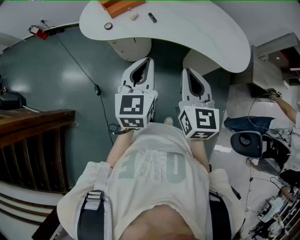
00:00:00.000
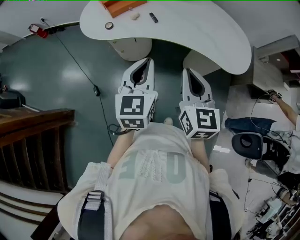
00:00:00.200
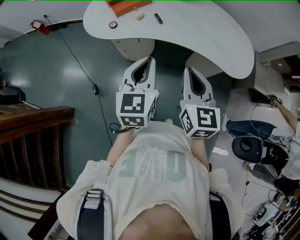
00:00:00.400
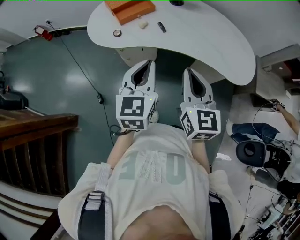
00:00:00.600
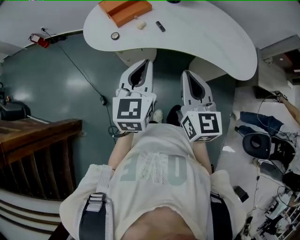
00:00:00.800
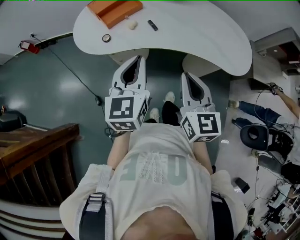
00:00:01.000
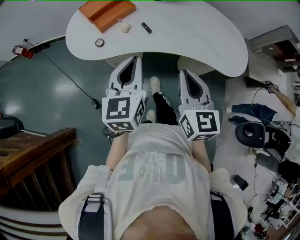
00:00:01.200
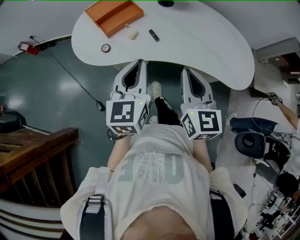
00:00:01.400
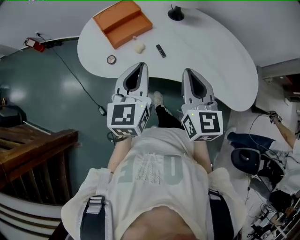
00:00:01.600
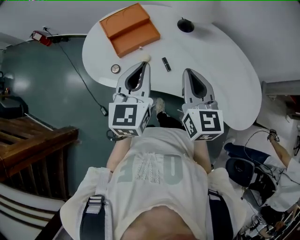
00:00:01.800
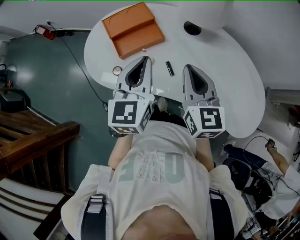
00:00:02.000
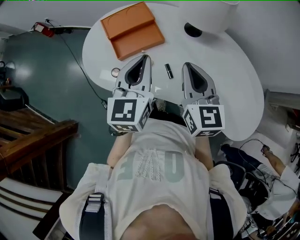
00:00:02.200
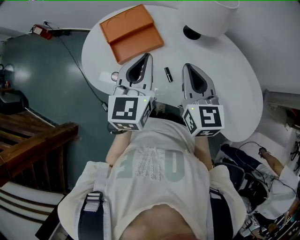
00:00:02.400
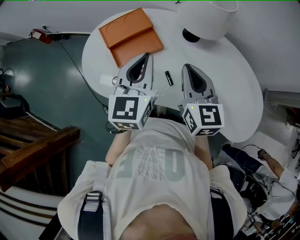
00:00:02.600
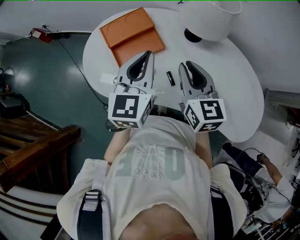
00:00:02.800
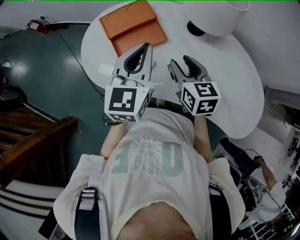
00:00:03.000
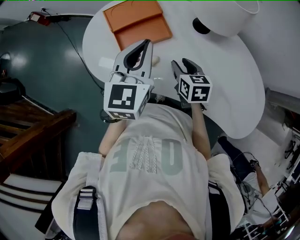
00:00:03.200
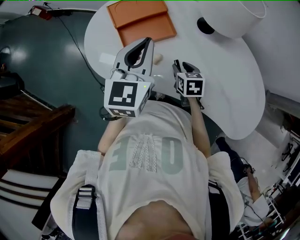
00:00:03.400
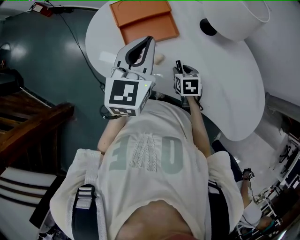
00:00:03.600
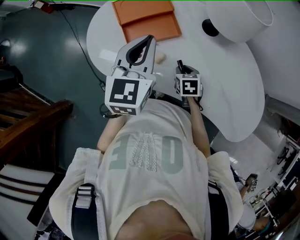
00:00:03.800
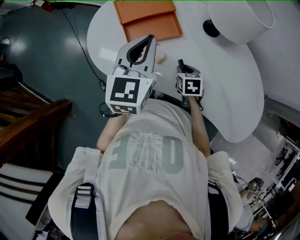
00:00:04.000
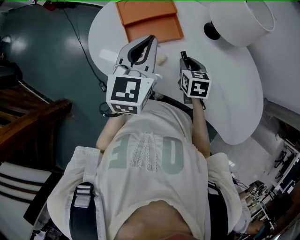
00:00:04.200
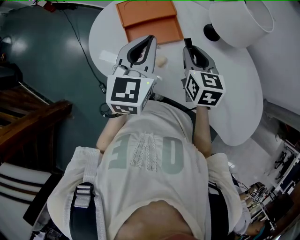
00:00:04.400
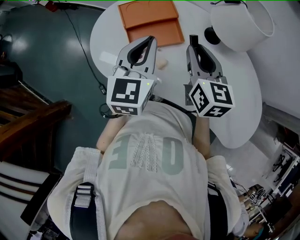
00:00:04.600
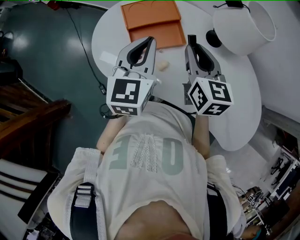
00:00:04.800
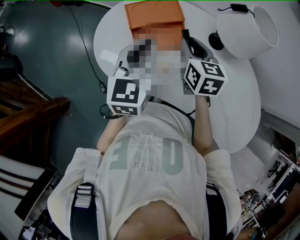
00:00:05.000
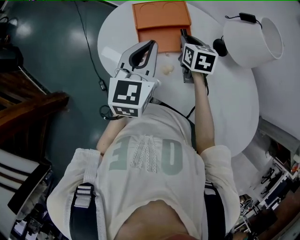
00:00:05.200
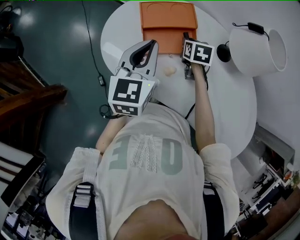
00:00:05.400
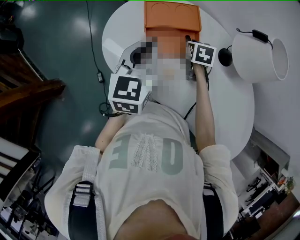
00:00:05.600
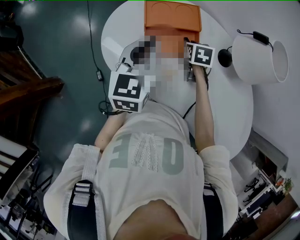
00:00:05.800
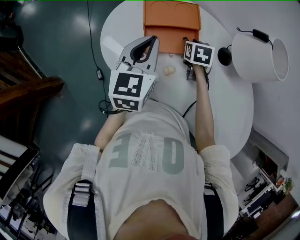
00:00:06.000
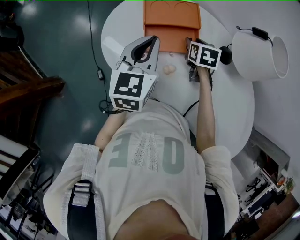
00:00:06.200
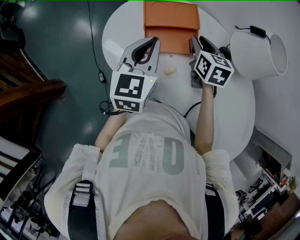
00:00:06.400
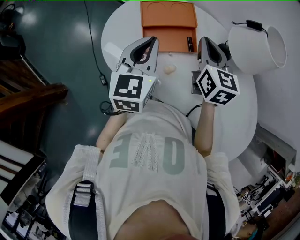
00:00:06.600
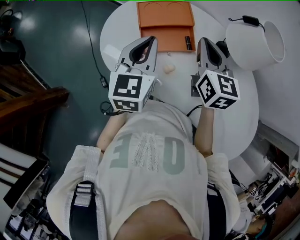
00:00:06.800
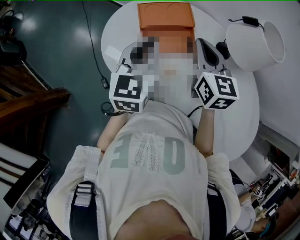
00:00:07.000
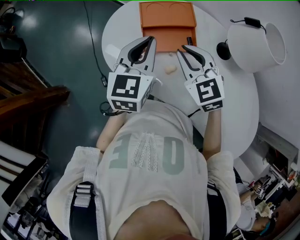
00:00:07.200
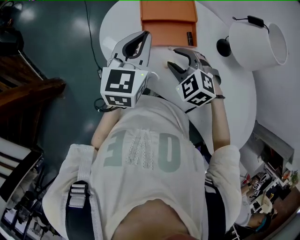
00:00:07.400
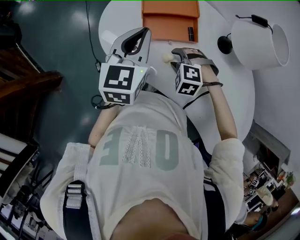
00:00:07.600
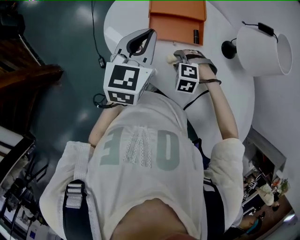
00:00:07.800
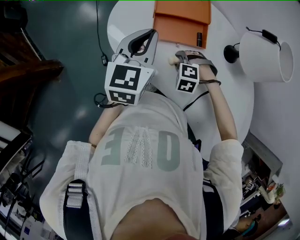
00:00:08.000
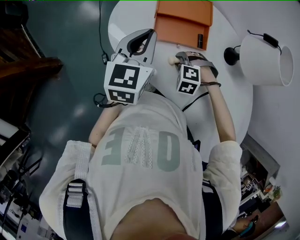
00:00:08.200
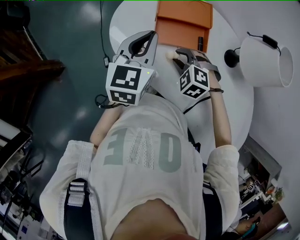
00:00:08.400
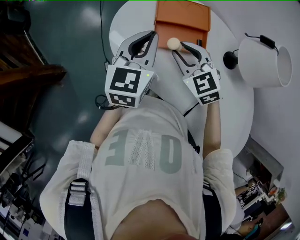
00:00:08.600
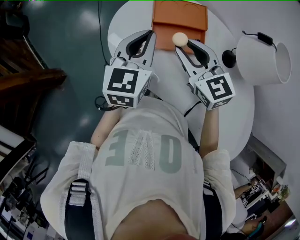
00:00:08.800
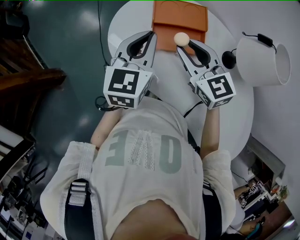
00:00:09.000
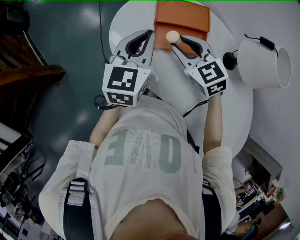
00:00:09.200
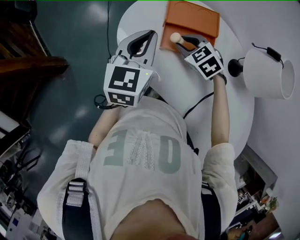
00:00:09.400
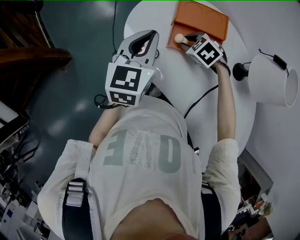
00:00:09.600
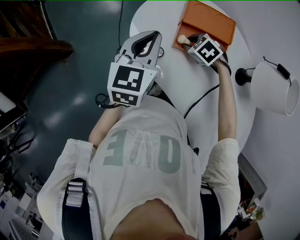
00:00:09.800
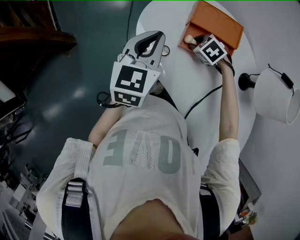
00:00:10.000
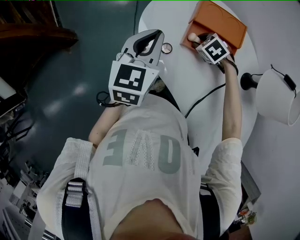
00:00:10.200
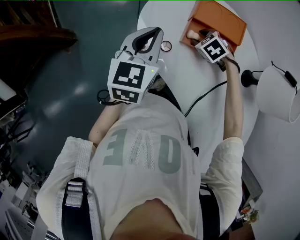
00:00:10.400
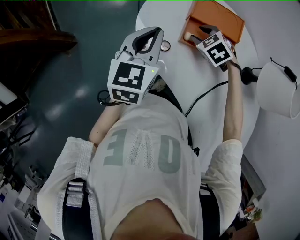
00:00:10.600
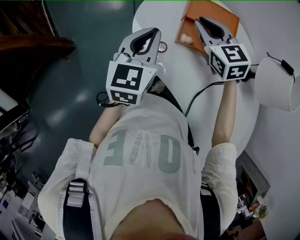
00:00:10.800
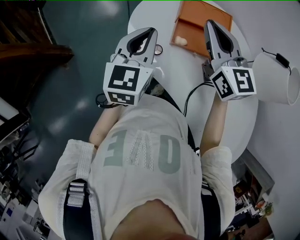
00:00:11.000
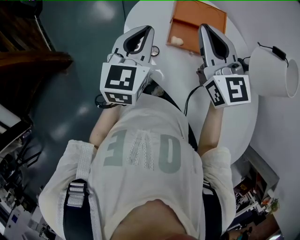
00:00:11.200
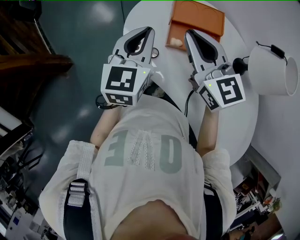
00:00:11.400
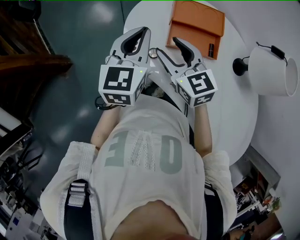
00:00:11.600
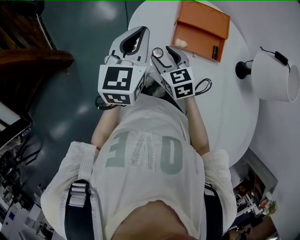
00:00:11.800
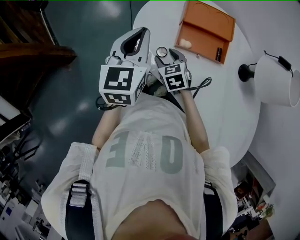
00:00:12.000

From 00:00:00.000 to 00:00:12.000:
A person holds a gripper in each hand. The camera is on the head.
From 00:00:00.000 to 00:00:01.600: The two grippers go approximately 20 cm forward.
From 00:00:01.600 to 00:00:03.000: The left gripper shifts some 15 cm forward, while the right gripper is displaced forward and downward by roughly 20 cm, rotates roughly 30 degrees, and opens up.
From 00:00:03.000 to 00:00:04.400: The left gripper travels to the left by roughly 5 cm; the right gripper reaches about 20 cm downward, then returns.
From 00:00:04.400 to 00:00:06.000: The right gripper is displaced downward and forward by about 20 cm, and rotates roughly 30 degrees. Meanwhile the left gripper shifts about 5 cm to the left.
From 00:00:06.000 to 00:00:07.600: The right gripper moves backward, some 15 cm, reaches approximately 20 cm upward, then returns, rolls counterclockwise, seen from behind, by some 80 degrees, and closes, then reopens.
From 00:00:07.600 to 00:00:09.000: The right gripper is displaced upward by approximately 20 cm, and points its fingers roughly 50 degrees further upward.
From 00:00:09.000 to 00:00:10.400: The left gripper travels to the left by some 10 cm, while the right gripper travels downward by some 20 cm, and points its fingers about 50 degrees further downward.
From 00:00:10.400 to 00:00:12.000: The right gripper shifts roughly 15 cm to the left and backward, goes upward and returns, about 30 cm each way, swivels some 40 degrees, and closes, then opens again.

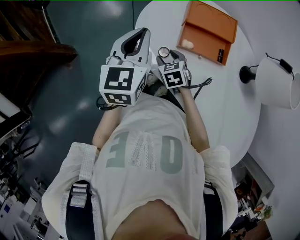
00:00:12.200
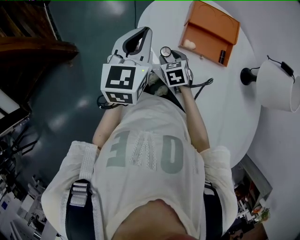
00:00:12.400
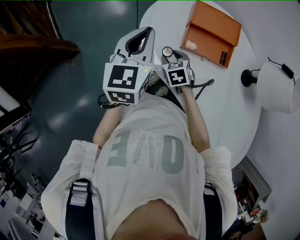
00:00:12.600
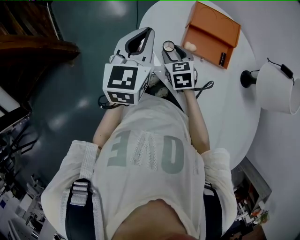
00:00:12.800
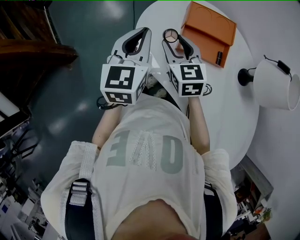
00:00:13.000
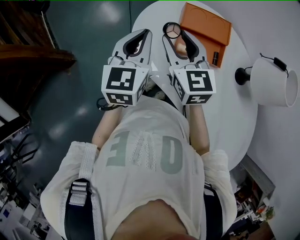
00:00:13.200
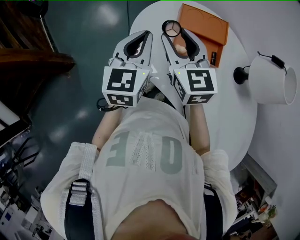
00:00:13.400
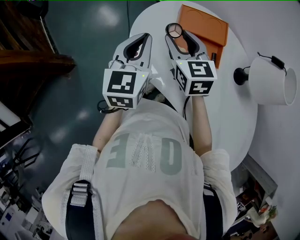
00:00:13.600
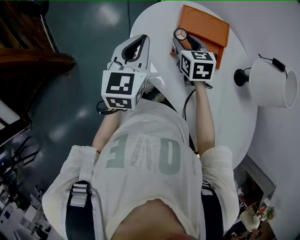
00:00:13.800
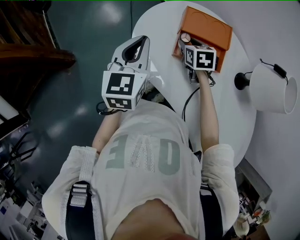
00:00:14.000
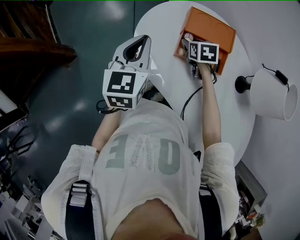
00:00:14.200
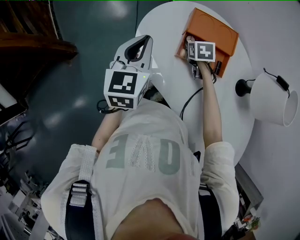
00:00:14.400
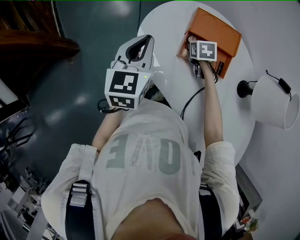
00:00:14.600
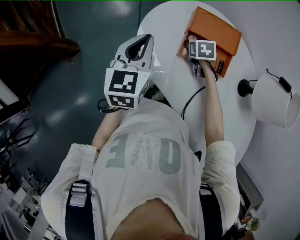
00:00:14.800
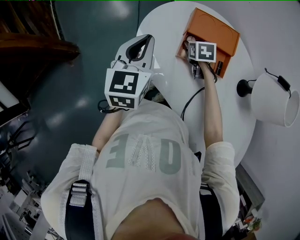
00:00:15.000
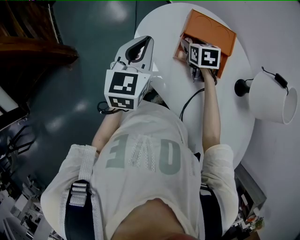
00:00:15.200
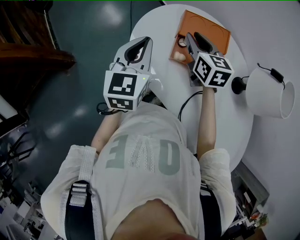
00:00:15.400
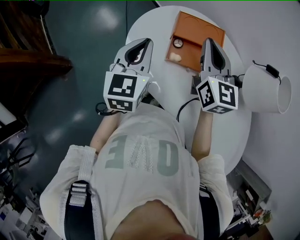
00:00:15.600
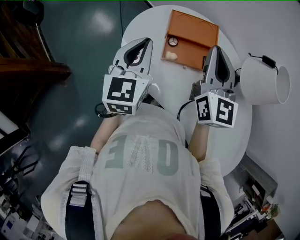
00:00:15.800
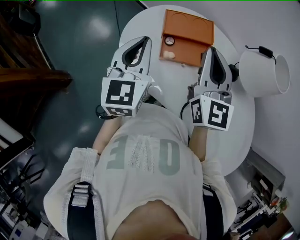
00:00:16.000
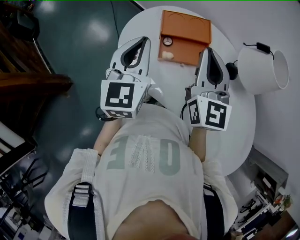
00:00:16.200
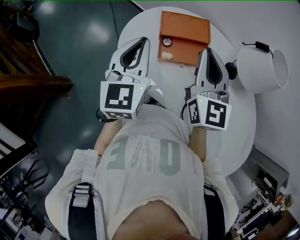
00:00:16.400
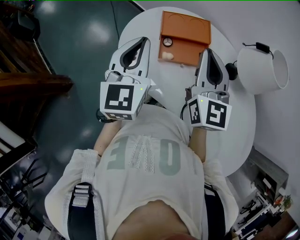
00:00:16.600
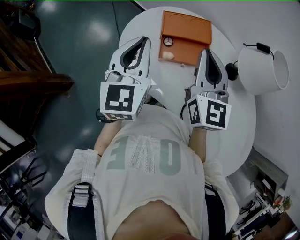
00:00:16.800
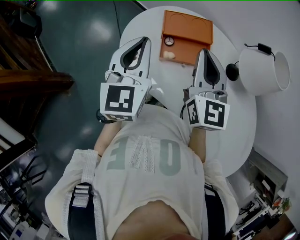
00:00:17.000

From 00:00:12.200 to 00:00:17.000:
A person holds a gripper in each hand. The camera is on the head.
From 00:00:12.200 to 00:00:13.800: The right gripper travels upward, forward and to the right by approximately 15 cm.
From 00:00:13.800 to 00:00:15.400: The right gripper reaches approximately 15 cm downward, then returns.
From 00:00:15.400 to 00:00:17.000: The right gripper moves upward, backward and to the right, about 20 cm, swivels roughly 30 degrees, and closes up. The left gripper heads upward and to the right, covering some 10 cm.

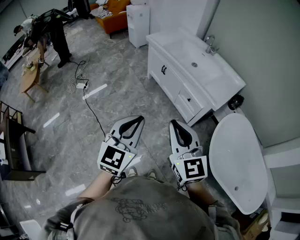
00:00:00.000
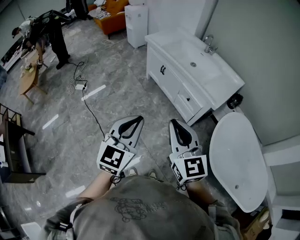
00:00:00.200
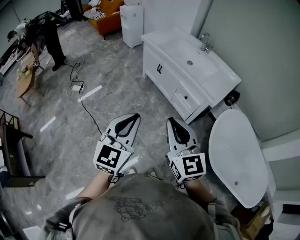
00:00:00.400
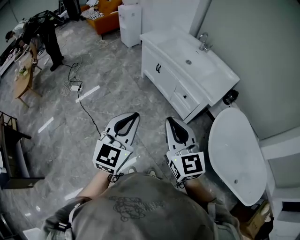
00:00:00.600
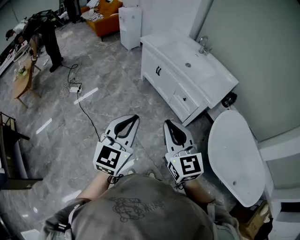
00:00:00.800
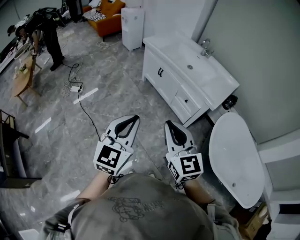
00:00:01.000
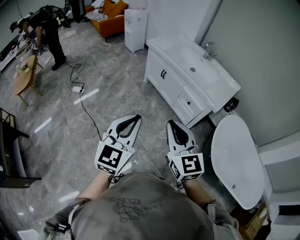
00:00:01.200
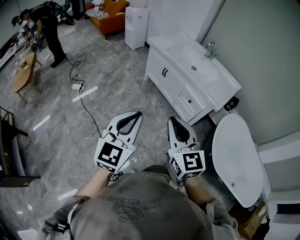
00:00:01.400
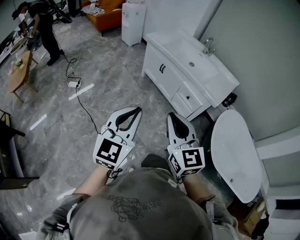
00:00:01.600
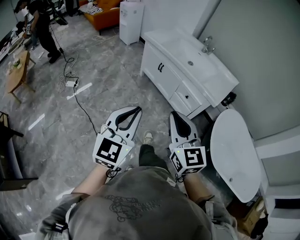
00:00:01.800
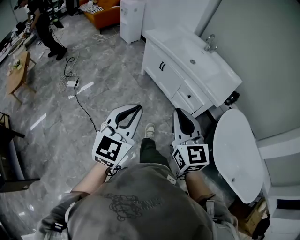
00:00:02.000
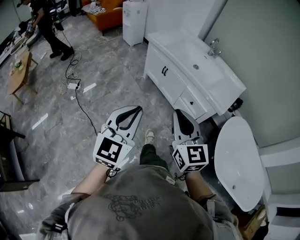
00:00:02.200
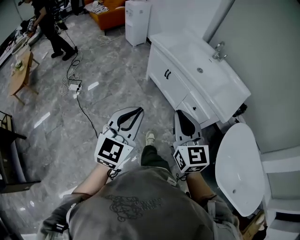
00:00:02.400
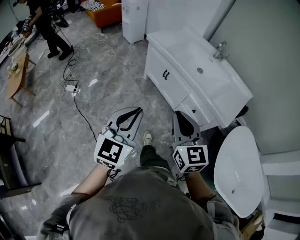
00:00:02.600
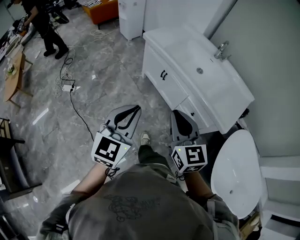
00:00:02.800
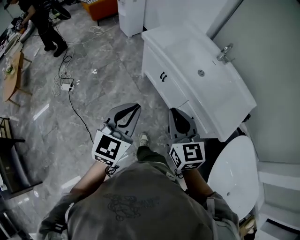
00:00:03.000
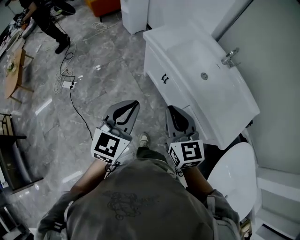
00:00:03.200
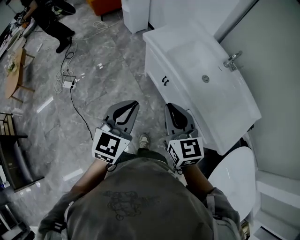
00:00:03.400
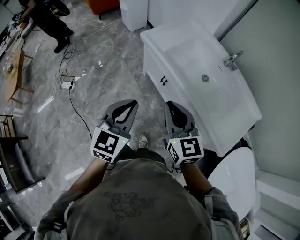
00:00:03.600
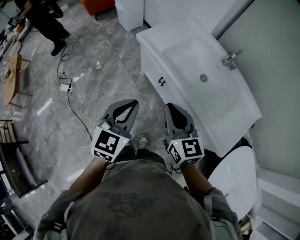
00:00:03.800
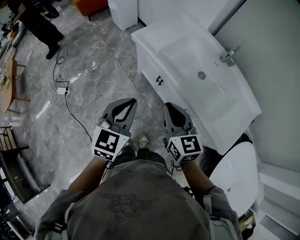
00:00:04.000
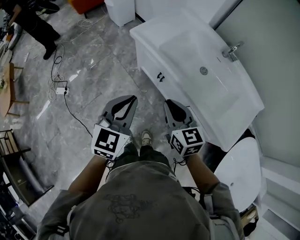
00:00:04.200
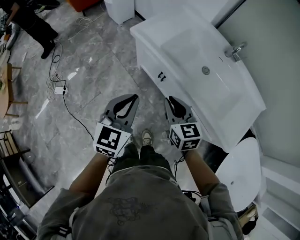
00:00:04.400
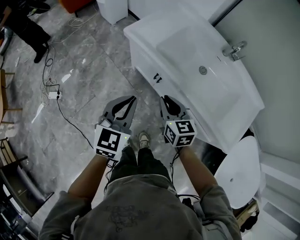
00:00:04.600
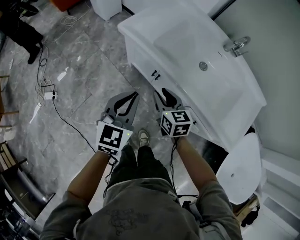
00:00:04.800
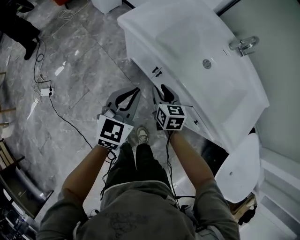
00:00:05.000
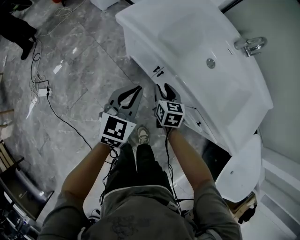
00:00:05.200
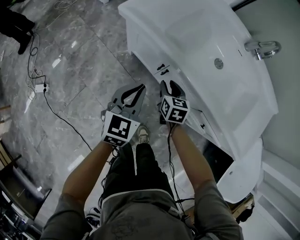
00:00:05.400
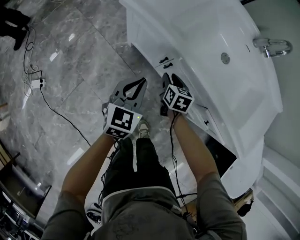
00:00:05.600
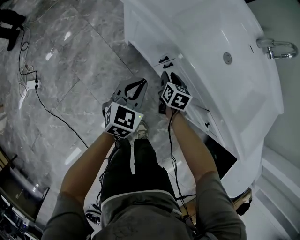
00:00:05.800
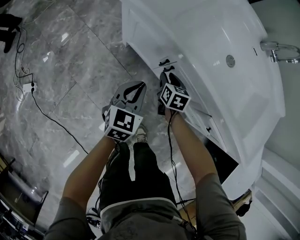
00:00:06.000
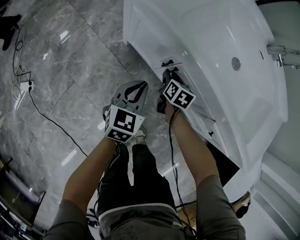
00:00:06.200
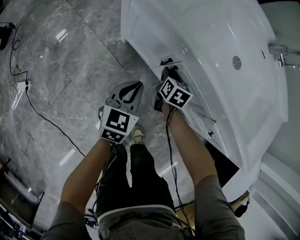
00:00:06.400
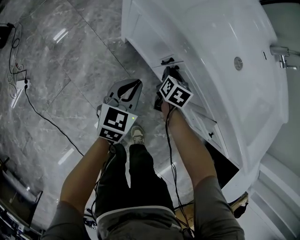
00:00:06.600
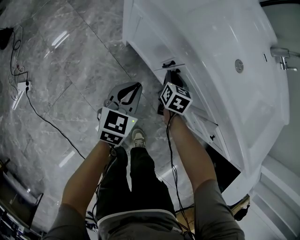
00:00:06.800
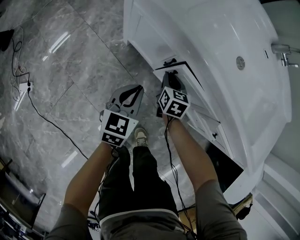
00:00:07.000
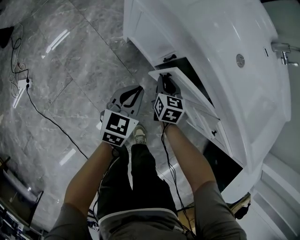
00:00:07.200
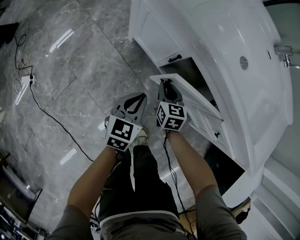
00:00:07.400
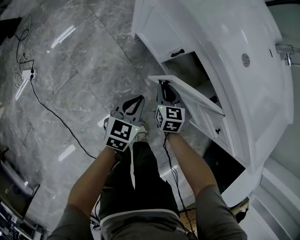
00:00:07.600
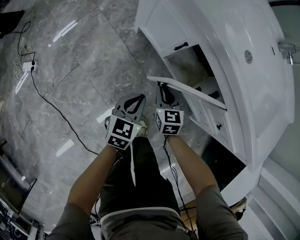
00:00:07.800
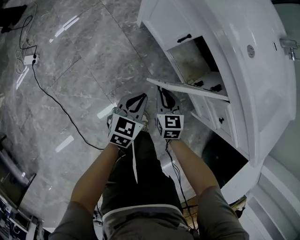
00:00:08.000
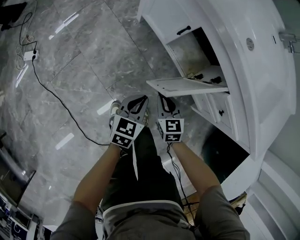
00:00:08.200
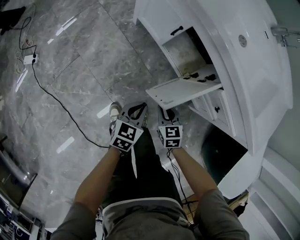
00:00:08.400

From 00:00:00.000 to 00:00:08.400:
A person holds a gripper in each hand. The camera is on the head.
From 00:00:00.000 to 00:00:01.400: The grippers both shift to the left by about 10 cm.
From 00:00:01.400 to 00:00:02.800: The grippers both shift forward by some 30 cm.
From 00:00:02.800 to 00:00:04.200: Both grippers move forward, about 25 cm.
From 00:00:04.200 to 00:00:05.600: Both grippers move downward and forward, about 35 cm. The right gripper turns by about 40 degrees, and opens.
From 00:00:05.600 to 00:00:07.000: The two grippers go some 10 cm downward. The right gripper closes its fingers.
From 00:00:07.000 to 00:00:08.400: The grippers both shift backward by some 25 cm. The right gripper changes its angle by roughly 30 degrees.
